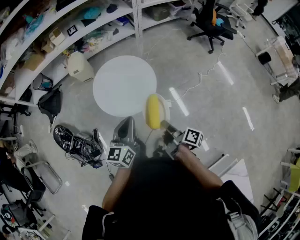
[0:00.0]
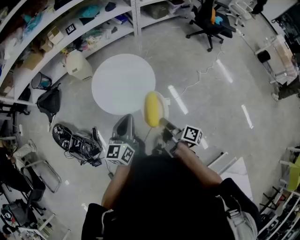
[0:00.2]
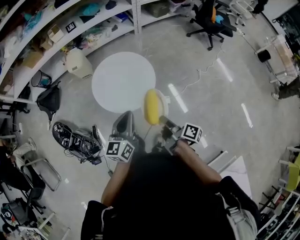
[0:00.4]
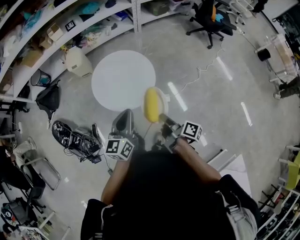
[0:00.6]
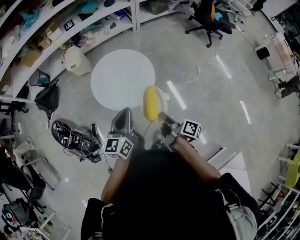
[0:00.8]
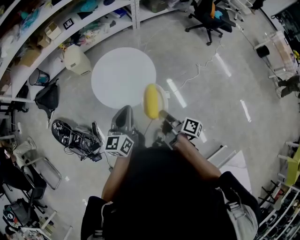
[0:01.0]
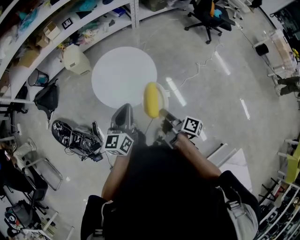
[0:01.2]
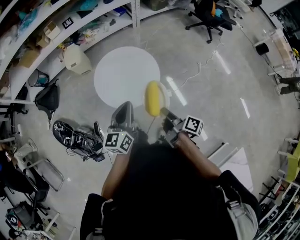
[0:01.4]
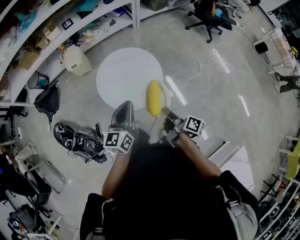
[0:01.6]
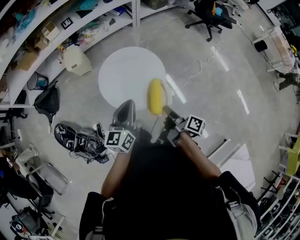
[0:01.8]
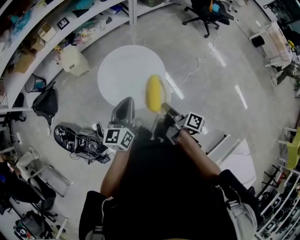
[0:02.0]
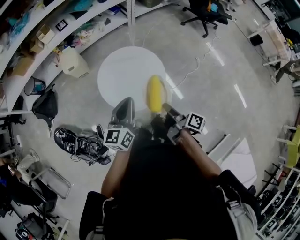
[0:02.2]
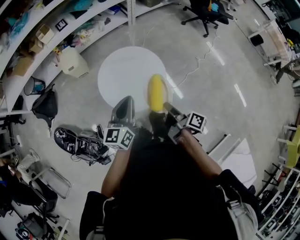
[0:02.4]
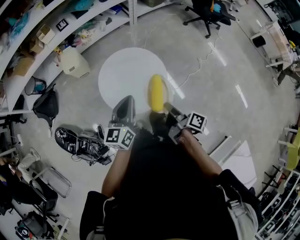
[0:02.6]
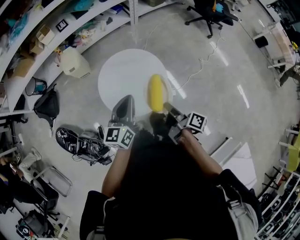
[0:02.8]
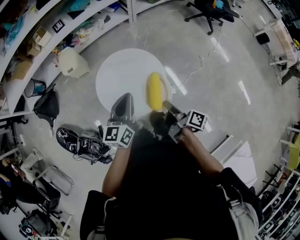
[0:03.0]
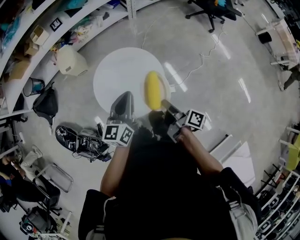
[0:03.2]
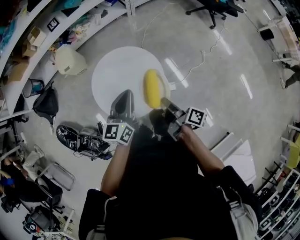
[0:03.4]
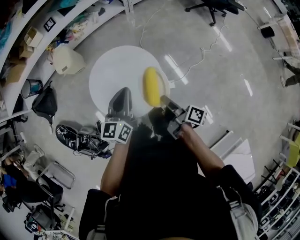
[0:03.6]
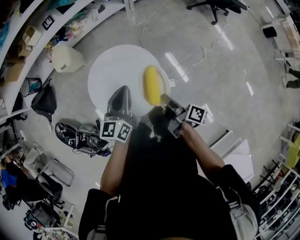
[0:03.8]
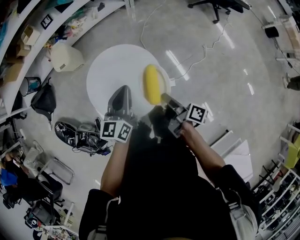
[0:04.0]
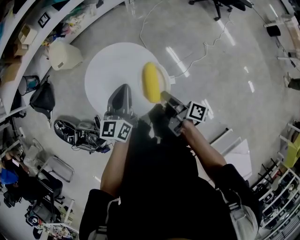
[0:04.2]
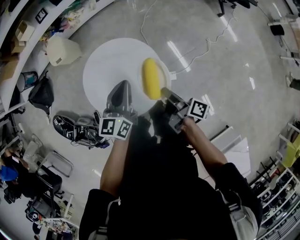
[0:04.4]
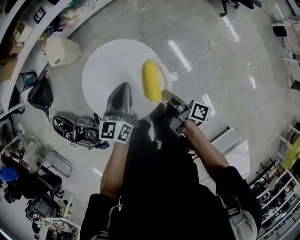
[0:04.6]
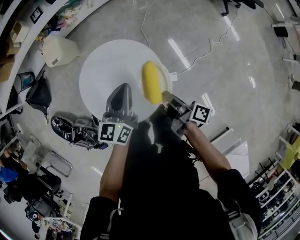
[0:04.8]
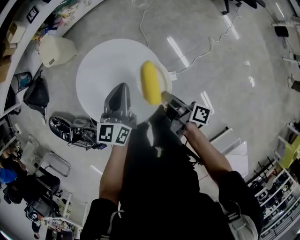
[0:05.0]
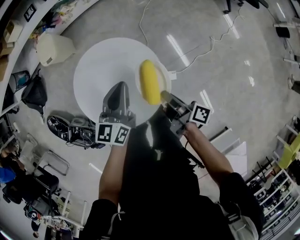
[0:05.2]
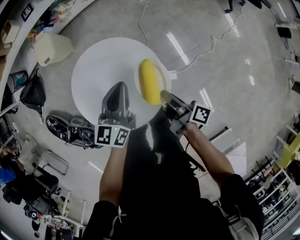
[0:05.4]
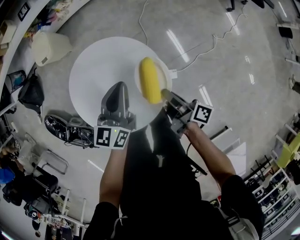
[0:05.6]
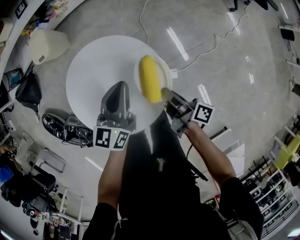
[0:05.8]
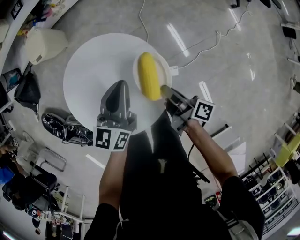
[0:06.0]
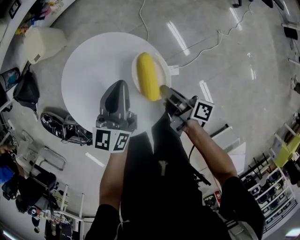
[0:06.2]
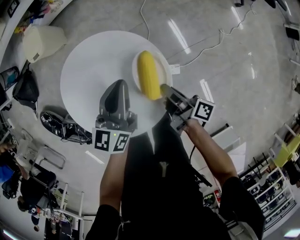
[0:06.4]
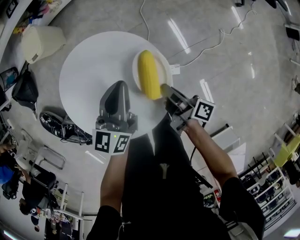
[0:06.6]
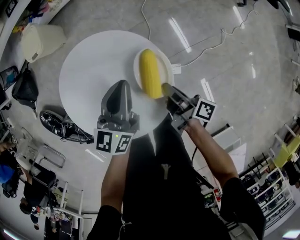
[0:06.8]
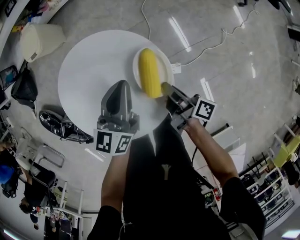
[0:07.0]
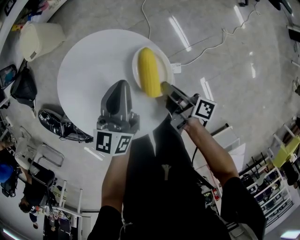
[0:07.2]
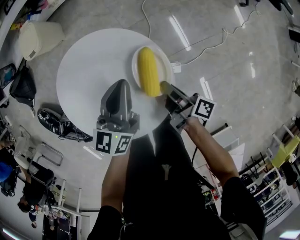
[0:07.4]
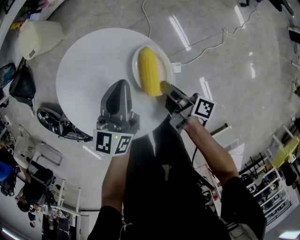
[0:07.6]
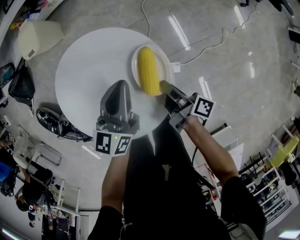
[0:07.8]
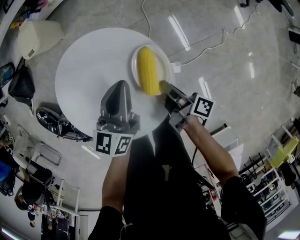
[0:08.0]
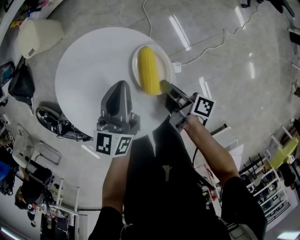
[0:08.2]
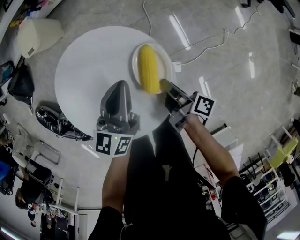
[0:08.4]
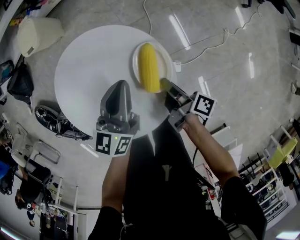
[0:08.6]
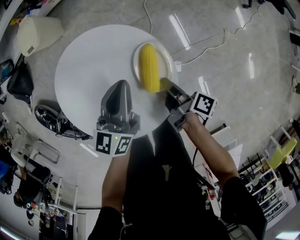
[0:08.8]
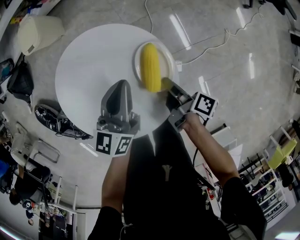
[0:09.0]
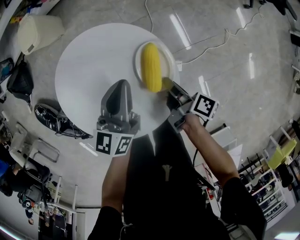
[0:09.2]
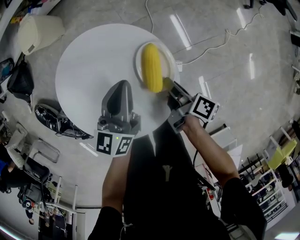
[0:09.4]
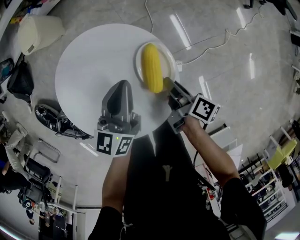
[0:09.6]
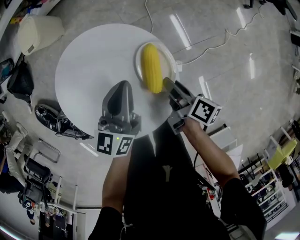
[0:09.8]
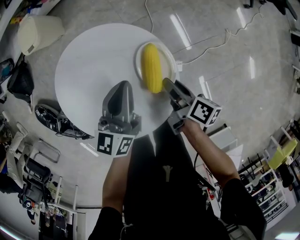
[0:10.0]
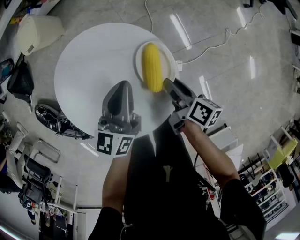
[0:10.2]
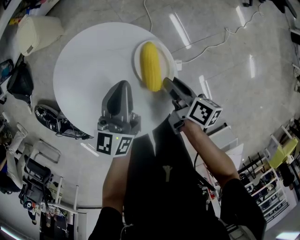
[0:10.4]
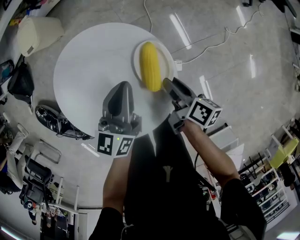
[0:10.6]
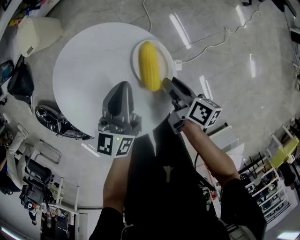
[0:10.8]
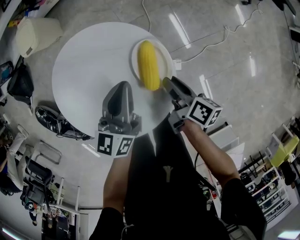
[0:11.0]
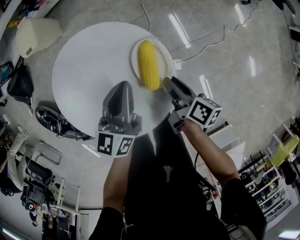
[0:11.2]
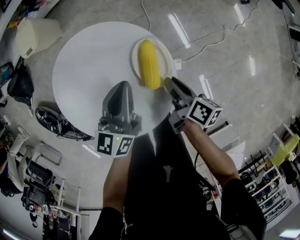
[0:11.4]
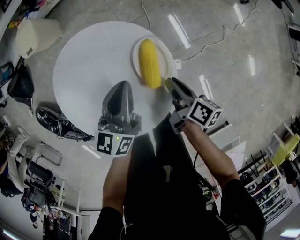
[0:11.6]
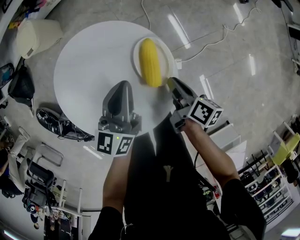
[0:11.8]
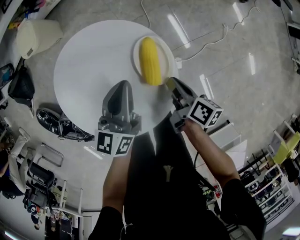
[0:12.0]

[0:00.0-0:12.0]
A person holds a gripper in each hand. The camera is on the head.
0:00.0 to 0:01.6: The left gripper shifts by some 10 cm.
0:01.6 to 0:03.0: The left gripper ends up roughly 10 cm from where it was.
0:03.0 to 0:04.4: The left gripper moves some 15 cm.
0:04.4 to 0:06.0: The left gripper is displaced downward by roughly 15 cm.

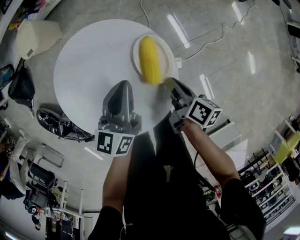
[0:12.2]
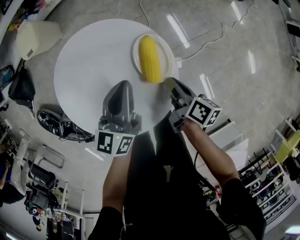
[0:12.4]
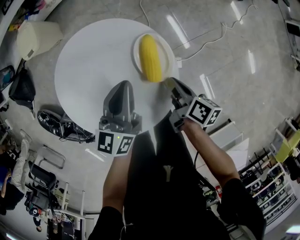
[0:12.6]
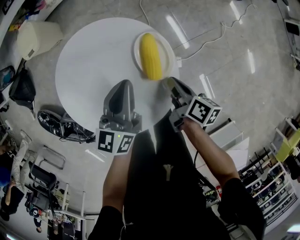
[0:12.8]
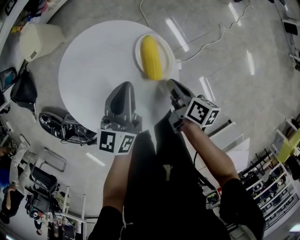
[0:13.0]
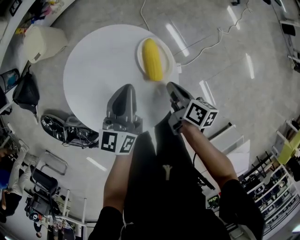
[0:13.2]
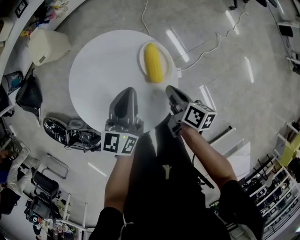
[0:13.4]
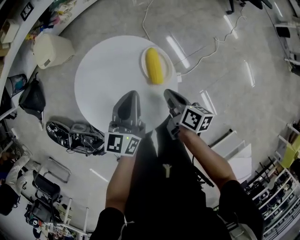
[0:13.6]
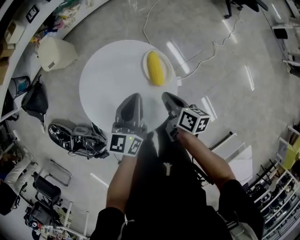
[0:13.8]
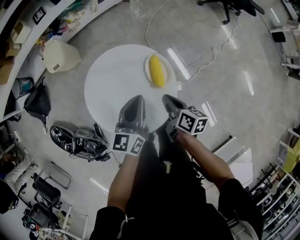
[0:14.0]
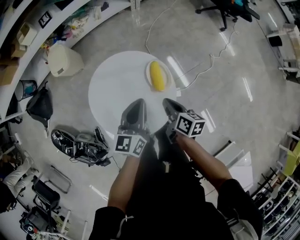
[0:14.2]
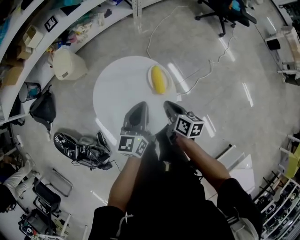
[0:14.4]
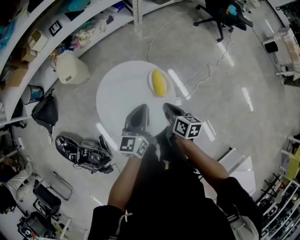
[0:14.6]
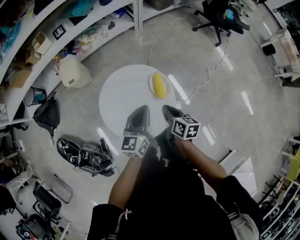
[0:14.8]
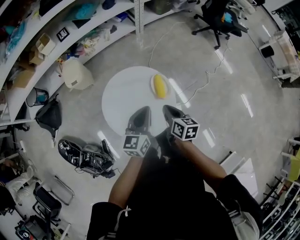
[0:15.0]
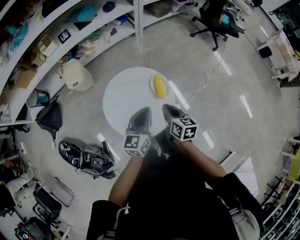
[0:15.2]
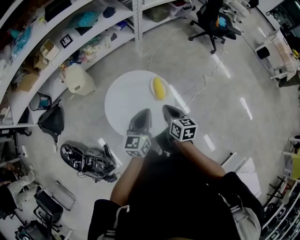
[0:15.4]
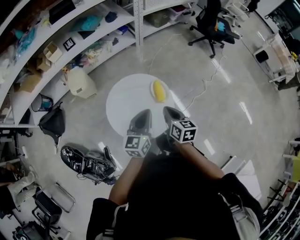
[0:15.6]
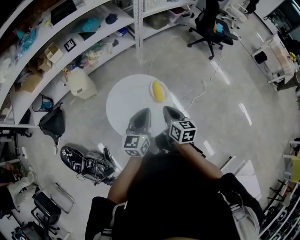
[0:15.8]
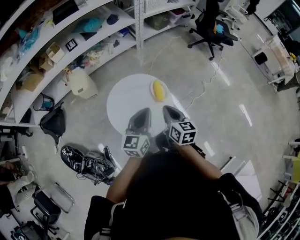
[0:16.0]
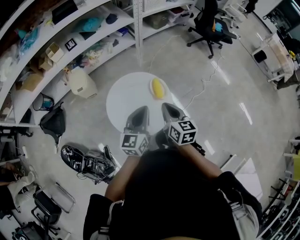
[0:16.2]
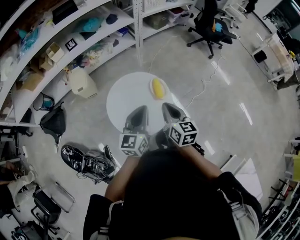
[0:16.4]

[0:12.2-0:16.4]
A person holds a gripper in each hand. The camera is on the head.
0:12.2 to 0:13.6: The left gripper heads upward, covering roughly 5 cm.
0:13.6 to 0:15.0: The left gripper shifts roughly 15 cm upward.
0:15.0 to 0:16.4: The left gripper shifts some 10 cm upward.

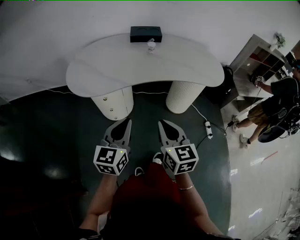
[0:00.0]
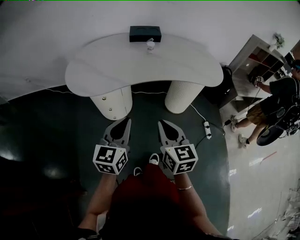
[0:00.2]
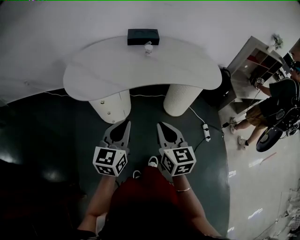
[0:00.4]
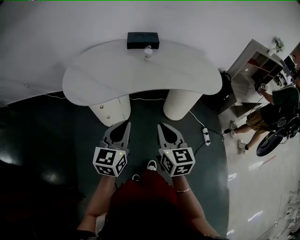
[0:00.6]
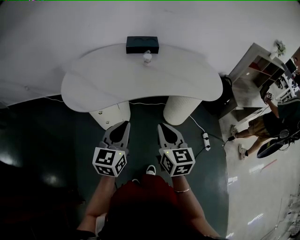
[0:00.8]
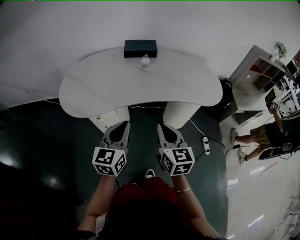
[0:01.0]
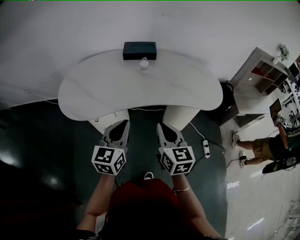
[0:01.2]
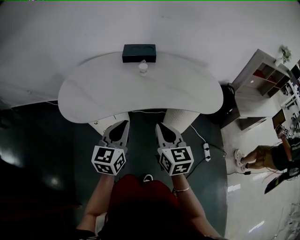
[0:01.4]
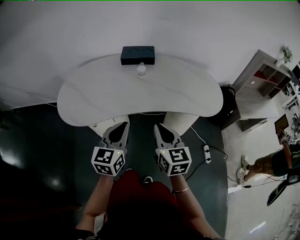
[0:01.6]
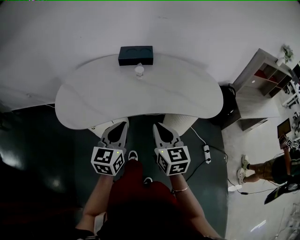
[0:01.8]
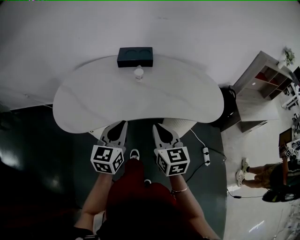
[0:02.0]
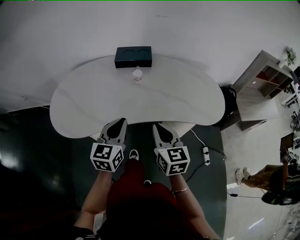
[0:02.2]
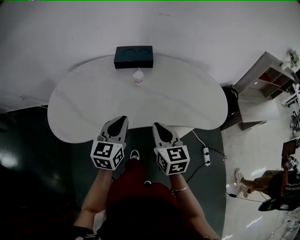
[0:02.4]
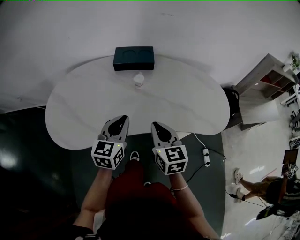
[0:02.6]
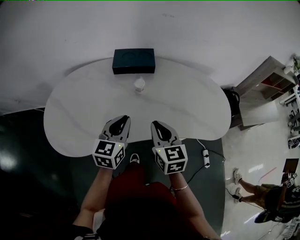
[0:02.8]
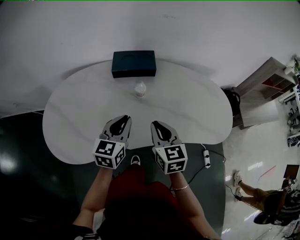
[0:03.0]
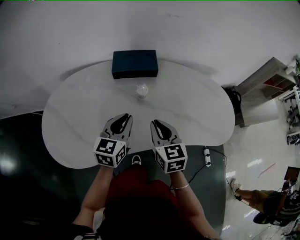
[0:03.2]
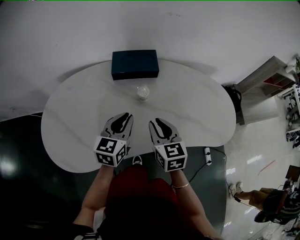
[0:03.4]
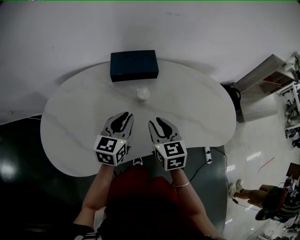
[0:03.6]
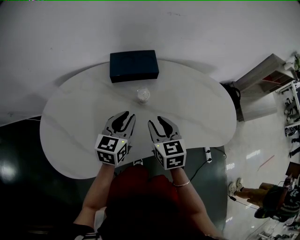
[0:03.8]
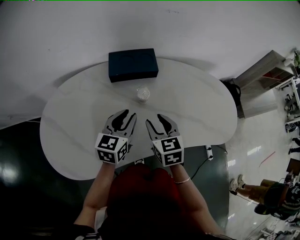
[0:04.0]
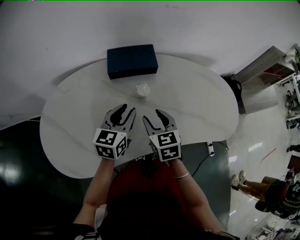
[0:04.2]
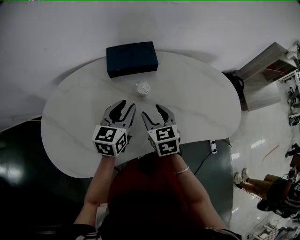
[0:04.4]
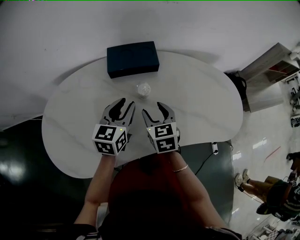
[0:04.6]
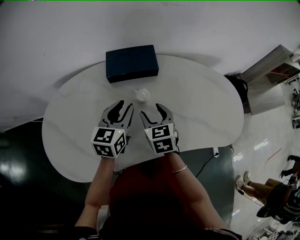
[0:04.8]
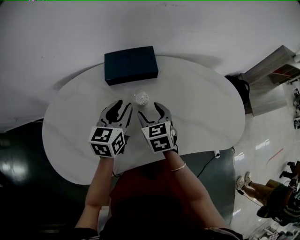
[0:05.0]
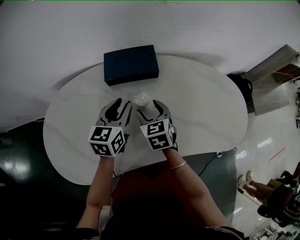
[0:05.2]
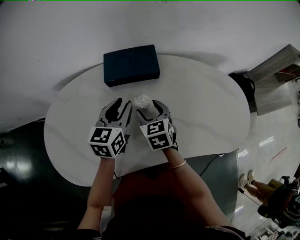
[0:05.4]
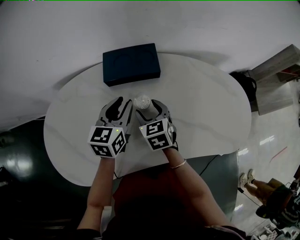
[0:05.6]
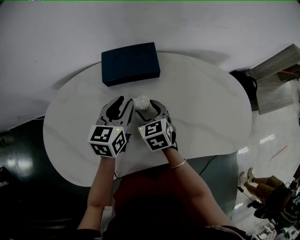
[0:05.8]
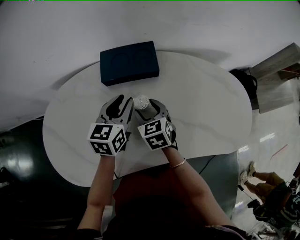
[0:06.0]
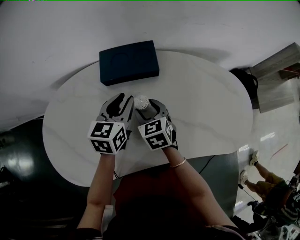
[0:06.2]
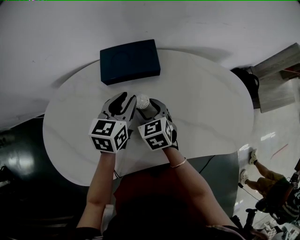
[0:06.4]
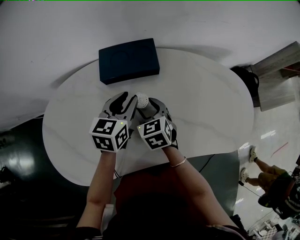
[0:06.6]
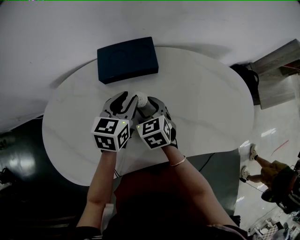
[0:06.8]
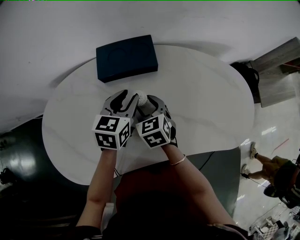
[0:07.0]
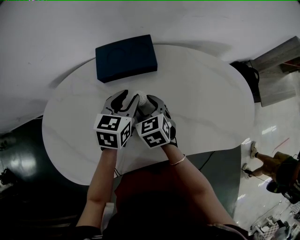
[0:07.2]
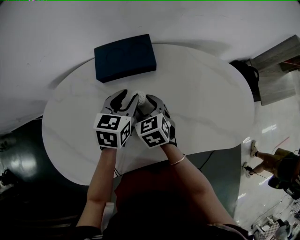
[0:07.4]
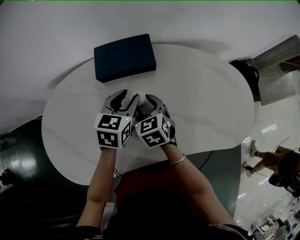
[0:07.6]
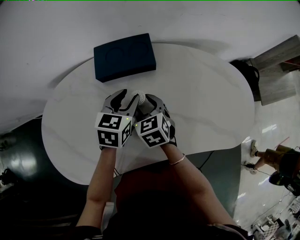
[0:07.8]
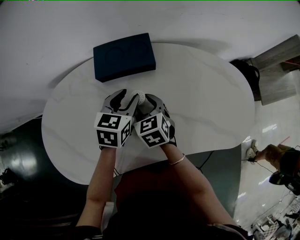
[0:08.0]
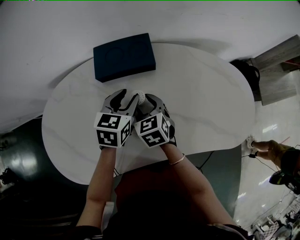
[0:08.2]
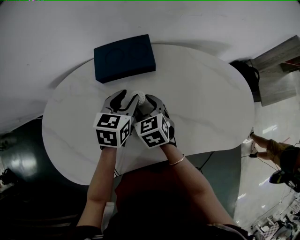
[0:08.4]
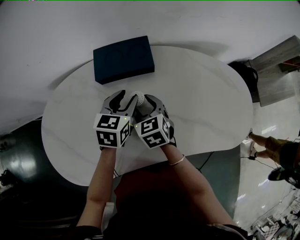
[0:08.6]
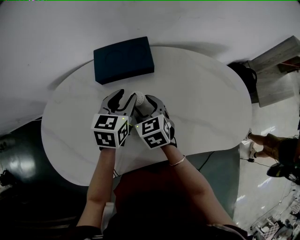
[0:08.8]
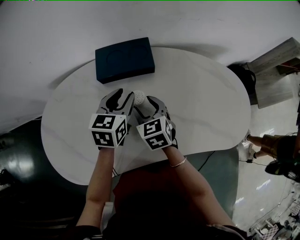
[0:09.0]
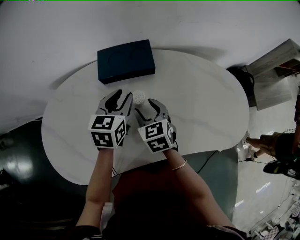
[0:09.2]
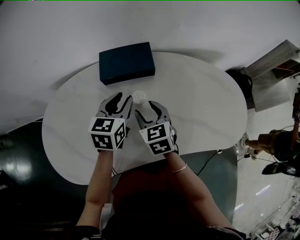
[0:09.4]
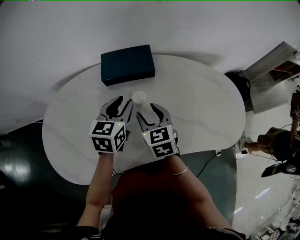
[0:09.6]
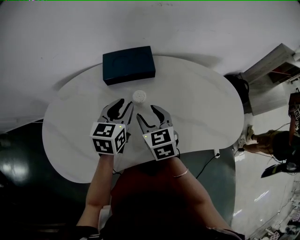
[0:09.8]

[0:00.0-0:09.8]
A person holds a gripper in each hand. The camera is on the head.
0:00.0 to 0:01.4: The grippers both shift forward and to the right by roughly 15 cm.
0:01.4 to 0:02.8: Both grippers travel together forward, about 20 cm.
0:02.8 to 0:04.2: The left gripper heads forward, covering approximately 10 cm; the right gripper is displaced forward, to the left and downward by roughly 15 cm, and opens.
0:04.2 to 0:05.6: Both grippers move forward, approximately 10 cm.
0:05.6 to 0:08.4: There are only small adjustments of the grippers.
0:08.4 to 0:09.8: The right gripper moves upward and backward, approximately 10 cm; the left gripper moves backward, about 5 cm.
